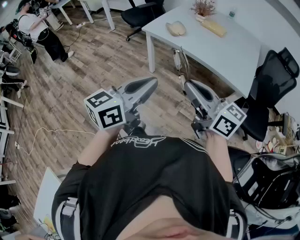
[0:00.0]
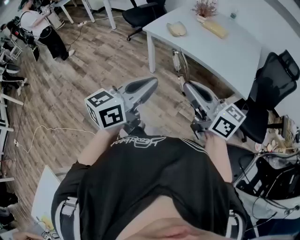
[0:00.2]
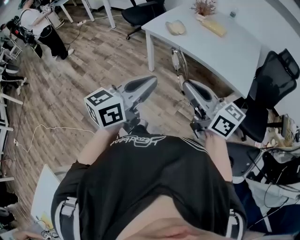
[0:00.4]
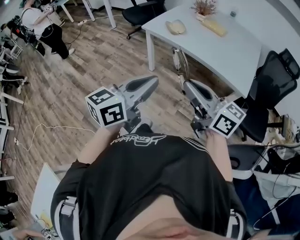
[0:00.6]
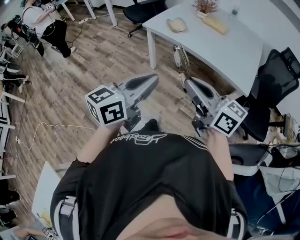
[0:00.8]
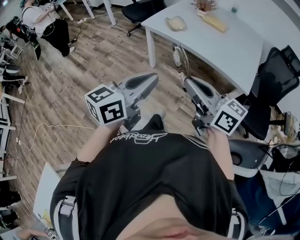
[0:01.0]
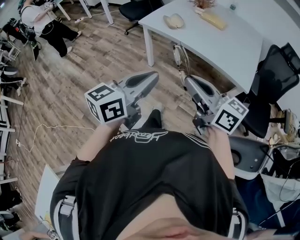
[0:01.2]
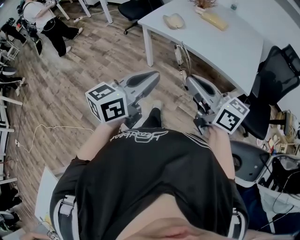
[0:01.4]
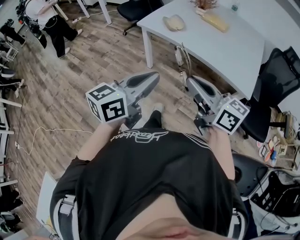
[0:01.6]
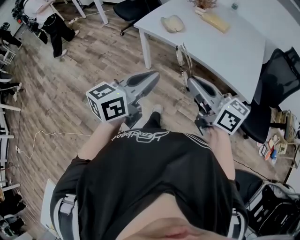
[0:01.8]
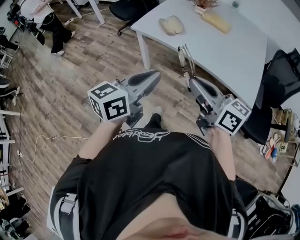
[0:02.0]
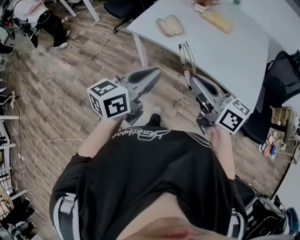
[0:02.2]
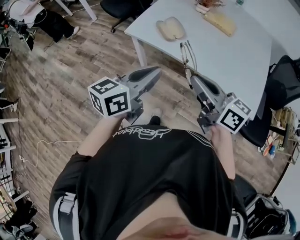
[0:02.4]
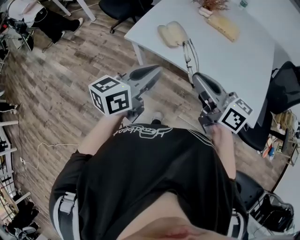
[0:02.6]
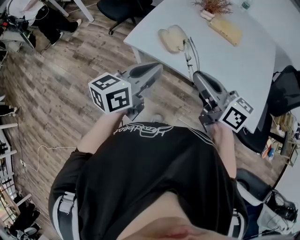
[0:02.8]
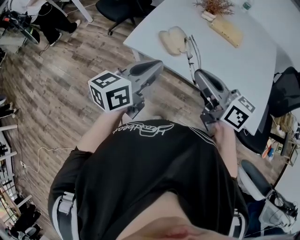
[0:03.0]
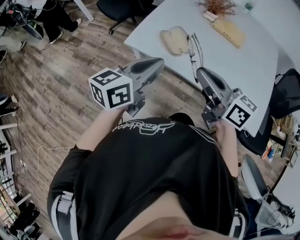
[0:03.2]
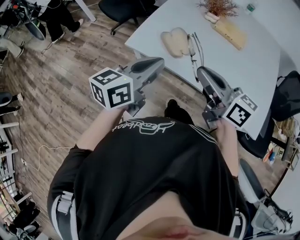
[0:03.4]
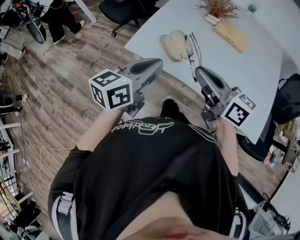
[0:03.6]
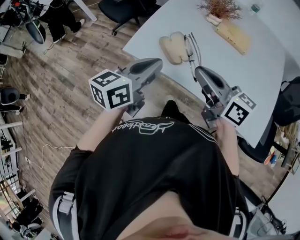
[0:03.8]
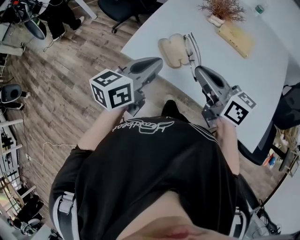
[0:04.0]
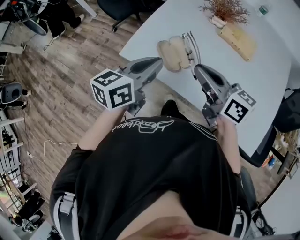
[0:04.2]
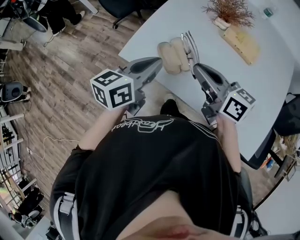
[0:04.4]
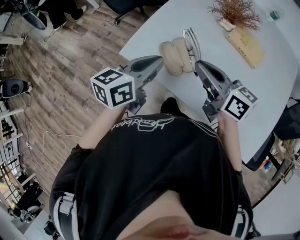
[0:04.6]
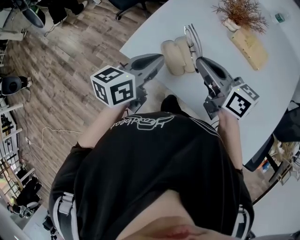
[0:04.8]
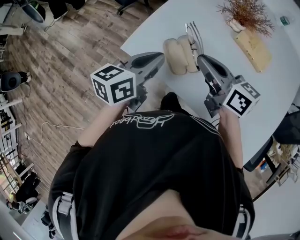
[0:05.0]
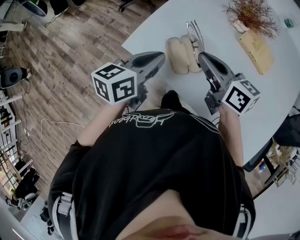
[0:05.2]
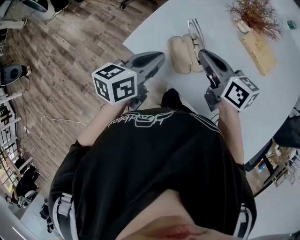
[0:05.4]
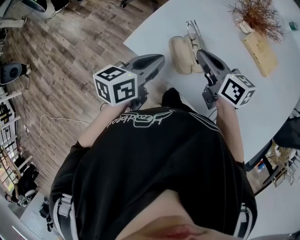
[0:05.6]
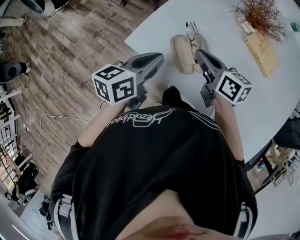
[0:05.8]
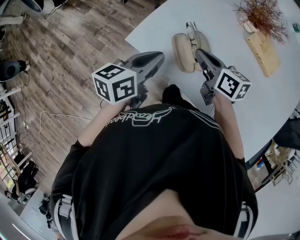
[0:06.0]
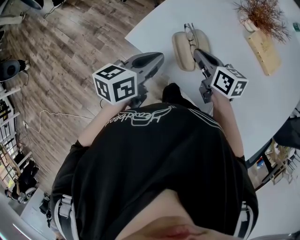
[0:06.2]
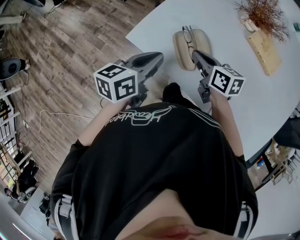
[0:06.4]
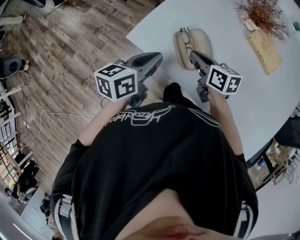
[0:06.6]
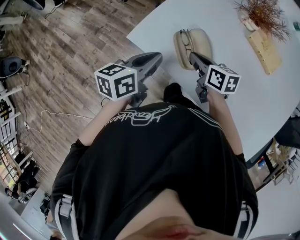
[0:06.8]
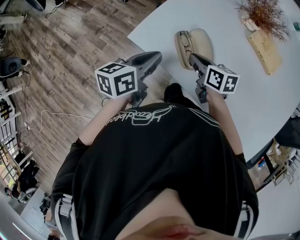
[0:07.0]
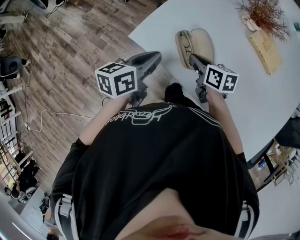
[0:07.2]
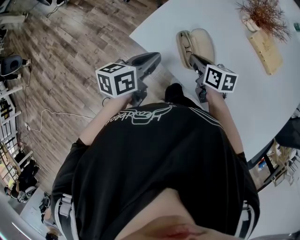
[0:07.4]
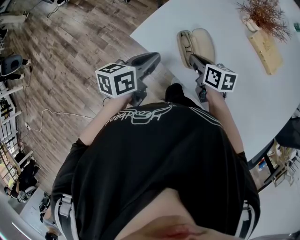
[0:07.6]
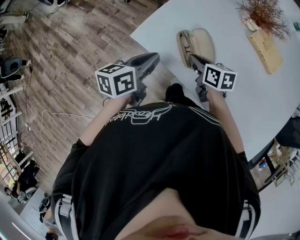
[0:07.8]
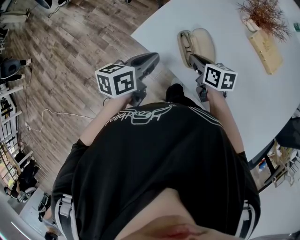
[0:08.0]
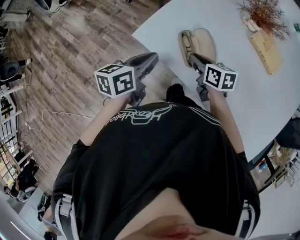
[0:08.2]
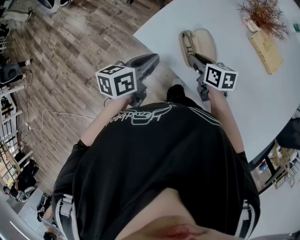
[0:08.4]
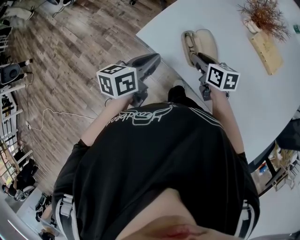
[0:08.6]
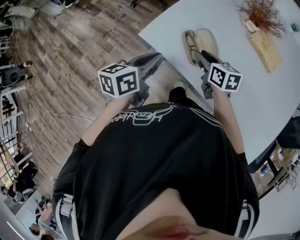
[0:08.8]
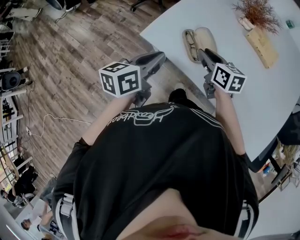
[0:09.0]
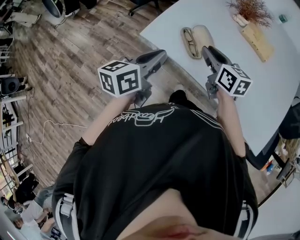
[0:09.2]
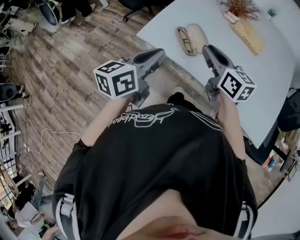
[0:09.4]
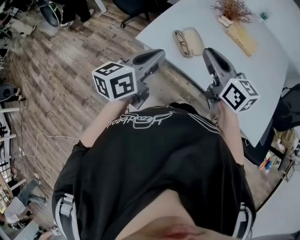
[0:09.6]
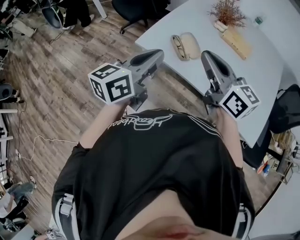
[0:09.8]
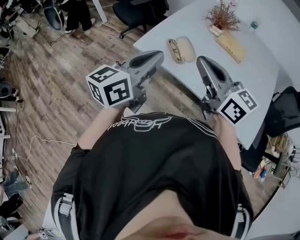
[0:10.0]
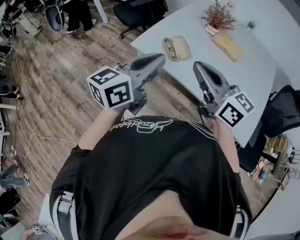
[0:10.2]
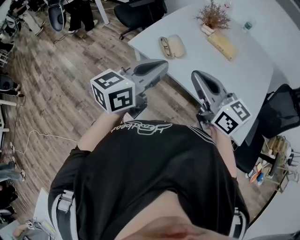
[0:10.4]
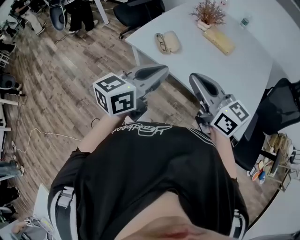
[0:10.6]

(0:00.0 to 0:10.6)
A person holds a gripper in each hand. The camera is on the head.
0:00.0 - 0:01.6: Both grippers travel together forward, roughly 5 cm.
0:01.6 - 0:03.0: The grippers both shift forward by approximately 40 cm.
0:03.0 - 0:04.6: The grippers both shift forward by some 20 cm.
0:04.6 - 0:06.0: The right gripper heads downward and forward, covering some 15 cm; the left gripper shifts roughly 5 cm downward.
0:06.0 - 0:07.6: The right gripper heads downward, covering approximately 10 cm.
0:07.6 - 0:09.0: The grippers both shift upward by some 5 cm.
0:09.0 - 0:10.6: The left gripper heads backward, upward and to the right, covering roughly 35 cm, and turns by roughly 30 degrees. The right gripper is displaced backward and upward by about 40 cm, and swivels about 30 degrees.

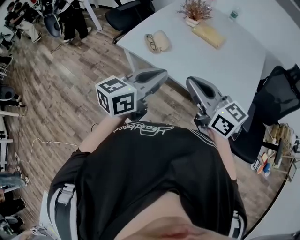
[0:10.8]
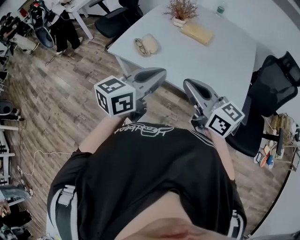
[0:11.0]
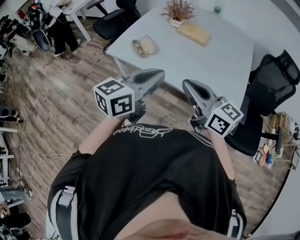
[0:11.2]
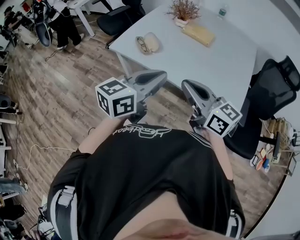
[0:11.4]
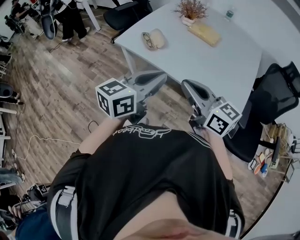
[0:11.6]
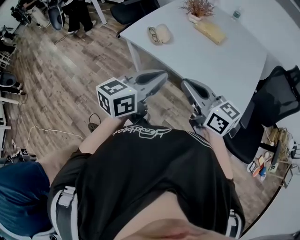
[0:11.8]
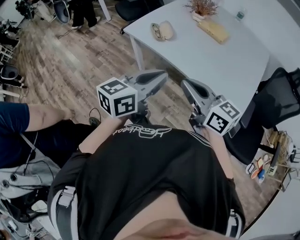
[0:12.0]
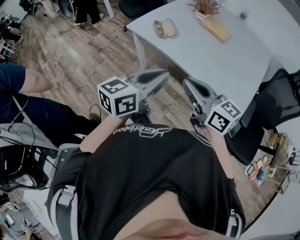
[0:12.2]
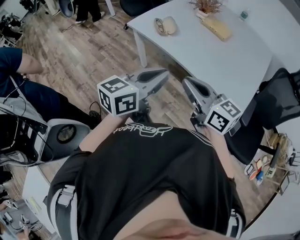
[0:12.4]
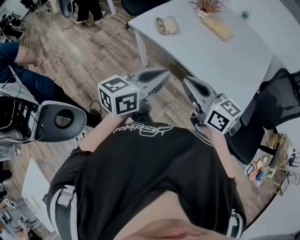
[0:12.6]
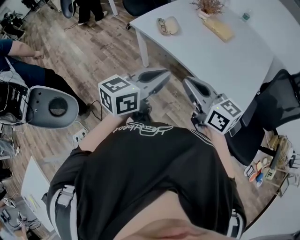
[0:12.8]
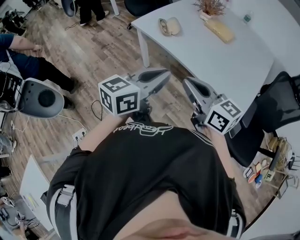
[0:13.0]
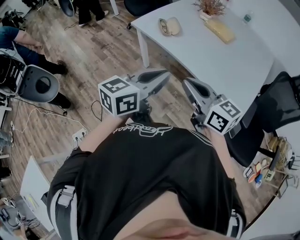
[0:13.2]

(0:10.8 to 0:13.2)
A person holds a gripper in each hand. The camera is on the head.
0:10.8 - 0:12.0: Both grippers travel together backward, some 10 cm.
0:12.0 - 0:13.2: The grippers make only small movements.

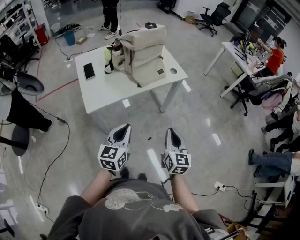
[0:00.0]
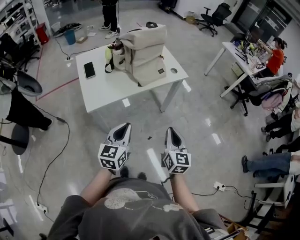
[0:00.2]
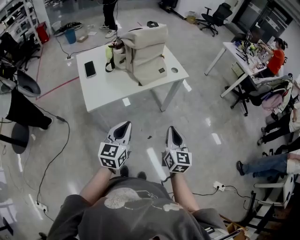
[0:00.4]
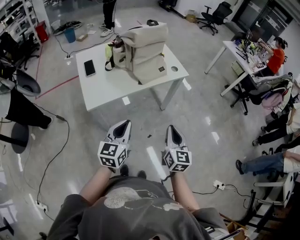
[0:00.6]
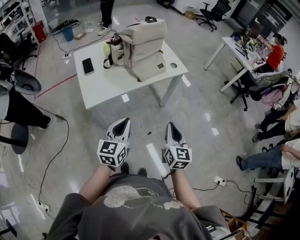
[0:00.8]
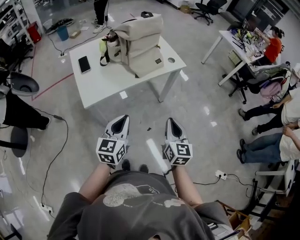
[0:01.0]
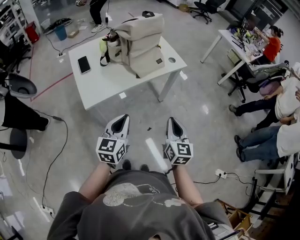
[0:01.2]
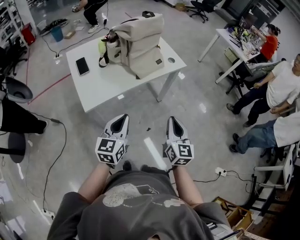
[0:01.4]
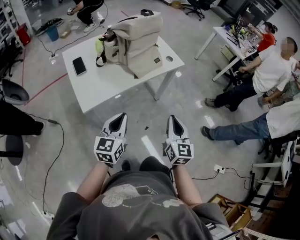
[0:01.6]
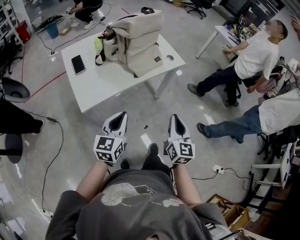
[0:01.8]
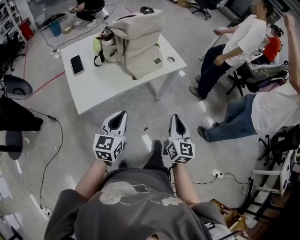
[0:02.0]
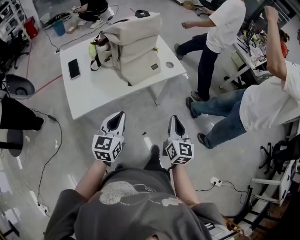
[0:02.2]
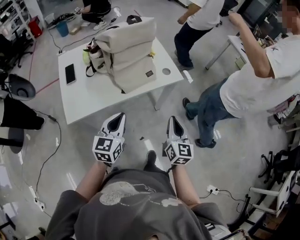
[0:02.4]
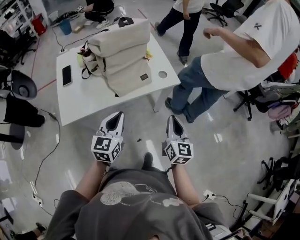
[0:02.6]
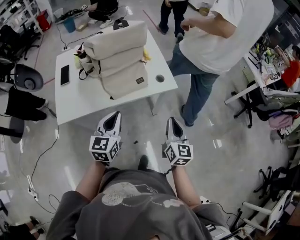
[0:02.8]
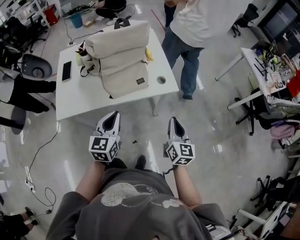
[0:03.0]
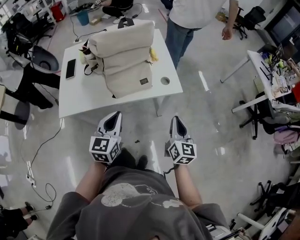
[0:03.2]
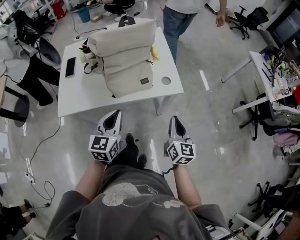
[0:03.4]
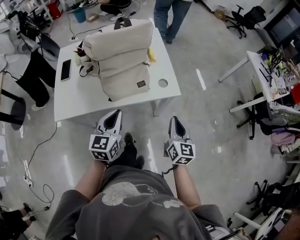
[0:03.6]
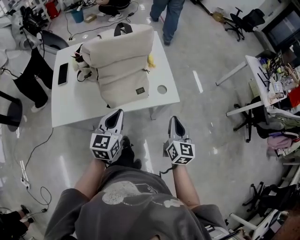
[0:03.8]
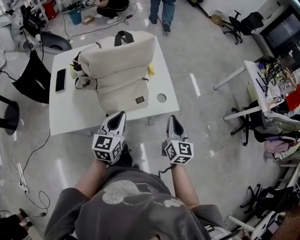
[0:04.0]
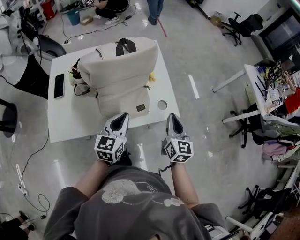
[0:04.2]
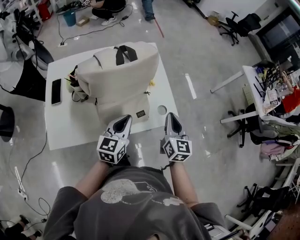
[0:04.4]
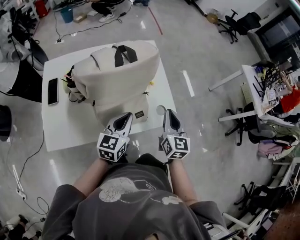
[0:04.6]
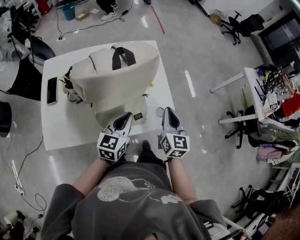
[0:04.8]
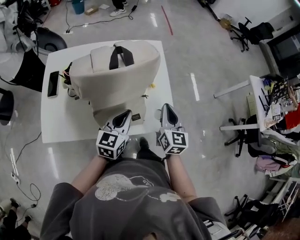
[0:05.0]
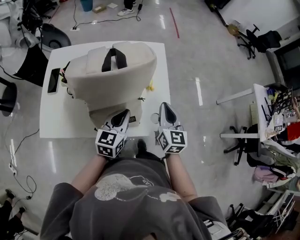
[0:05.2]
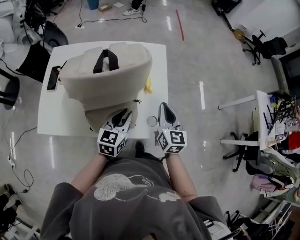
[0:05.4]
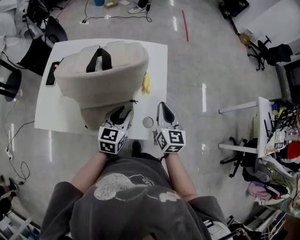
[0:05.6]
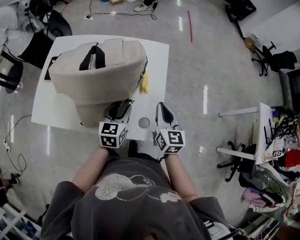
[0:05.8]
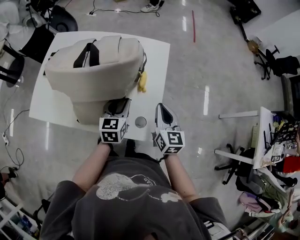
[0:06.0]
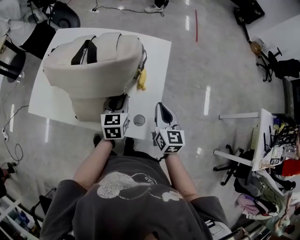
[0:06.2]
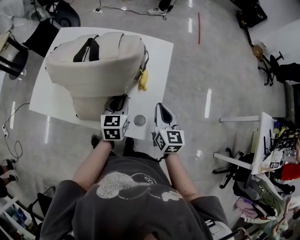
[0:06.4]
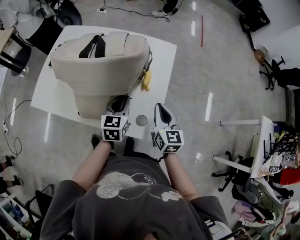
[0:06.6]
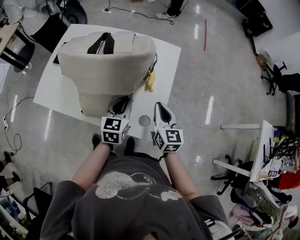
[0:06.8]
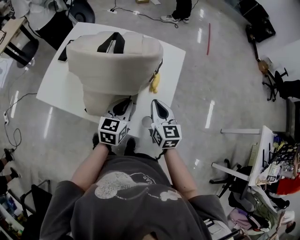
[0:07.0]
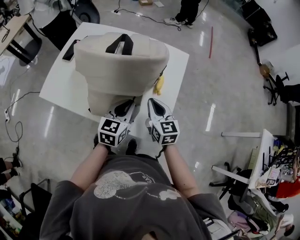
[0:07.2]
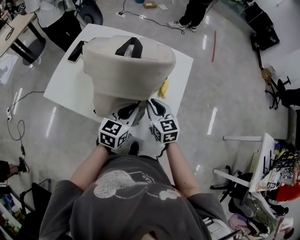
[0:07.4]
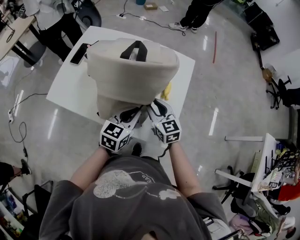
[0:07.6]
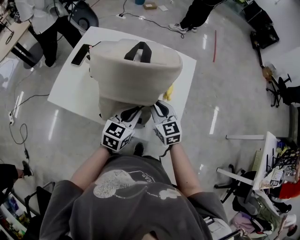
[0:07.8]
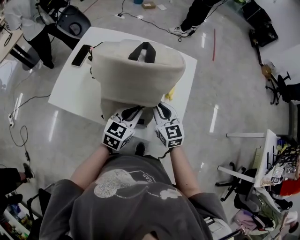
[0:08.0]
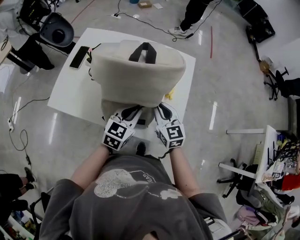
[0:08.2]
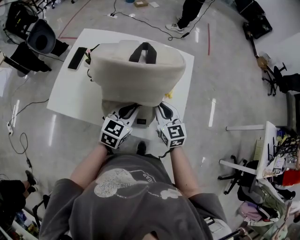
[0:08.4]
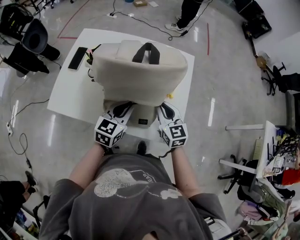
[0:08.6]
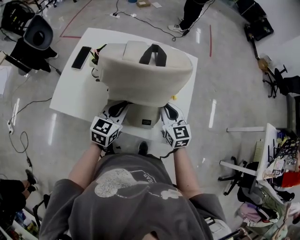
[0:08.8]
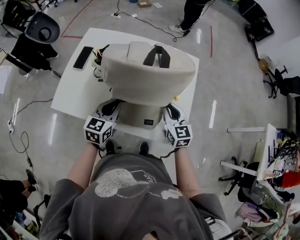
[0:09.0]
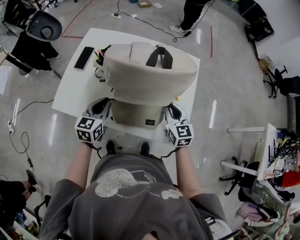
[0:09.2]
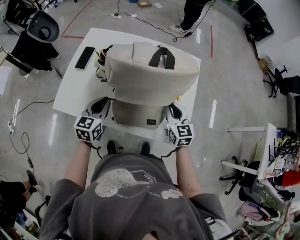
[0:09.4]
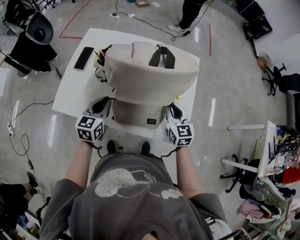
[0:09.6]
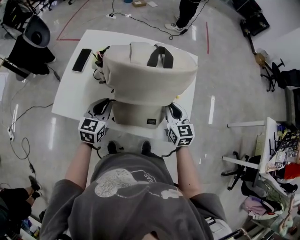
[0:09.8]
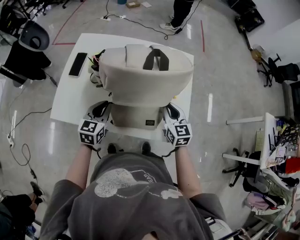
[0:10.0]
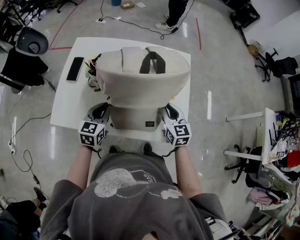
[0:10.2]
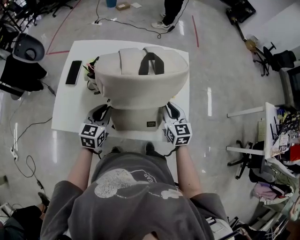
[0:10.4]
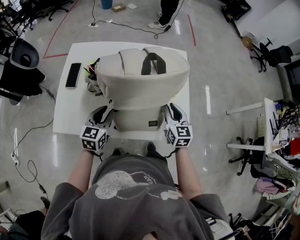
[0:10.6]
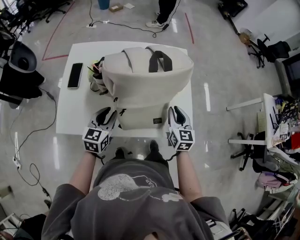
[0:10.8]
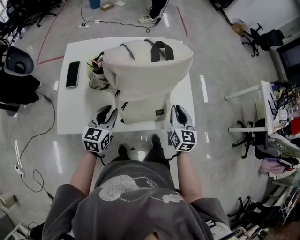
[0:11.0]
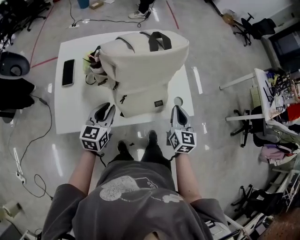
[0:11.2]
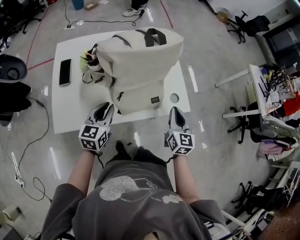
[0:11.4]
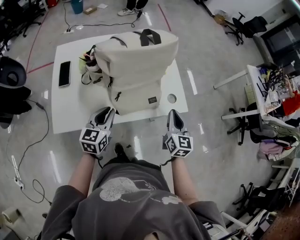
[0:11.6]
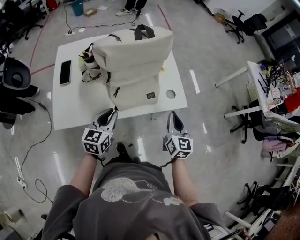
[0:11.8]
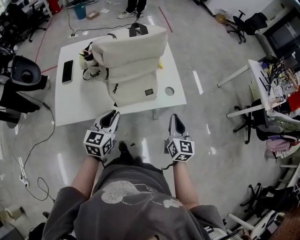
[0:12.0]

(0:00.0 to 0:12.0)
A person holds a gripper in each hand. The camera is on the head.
0:00.0 - 0:01.6: The left gripper shifts by some 5 cm.
0:01.6 - 0:03.0: The two grippers go approximately 30 cm forward and to the right. The left gripper changes its angle by roughly 20 degrees.
0:03.0 - 0:04.4: Both grippers move forward, roughly 20 cm.
0:04.4 - 0:06.0: The left gripper shifts by some 15 cm, rotates approximately 30 degrees, and opens its fingers. The right gripper moves roughly 15 cm, and turns by roughly 30 degrees.
0:06.0 - 0:07.6: The left gripper goes roughly 5 cm backward, and closes up, while the right gripper travels to the left by some 15 cm, swivels roughly 30 degrees, and opens.
0:07.6 - 0:09.0: The right gripper closes up; the left gripper is displaced to the left by roughly 15 cm.
0:09.0 - 0:10.4: The left gripper travels to the left by roughly 5 cm.
0:10.4 - 0:12.0: The right gripper goes roughly 25 cm backward, and rotates roughly 30 degrees; the left gripper goes roughly 15 cm backward and to the right.
